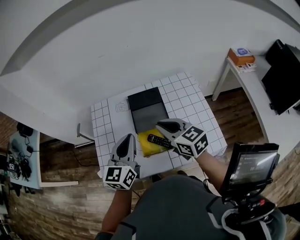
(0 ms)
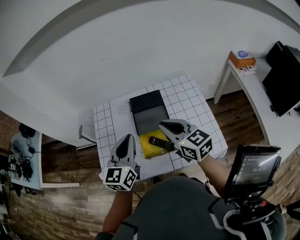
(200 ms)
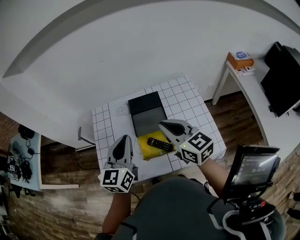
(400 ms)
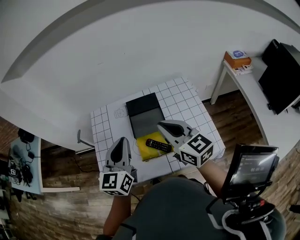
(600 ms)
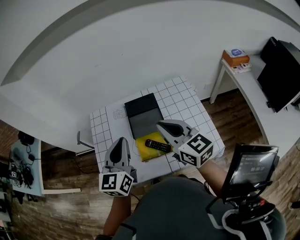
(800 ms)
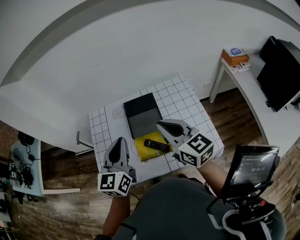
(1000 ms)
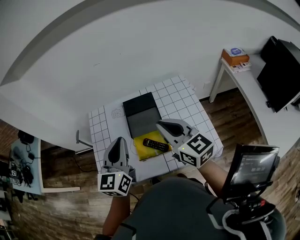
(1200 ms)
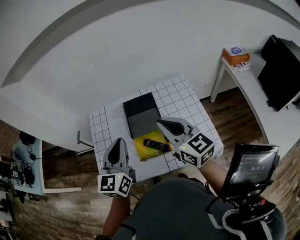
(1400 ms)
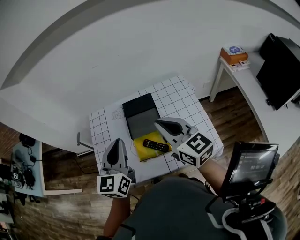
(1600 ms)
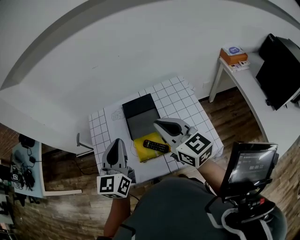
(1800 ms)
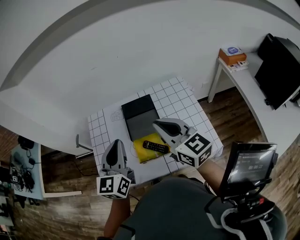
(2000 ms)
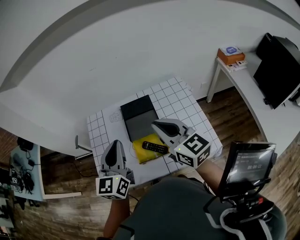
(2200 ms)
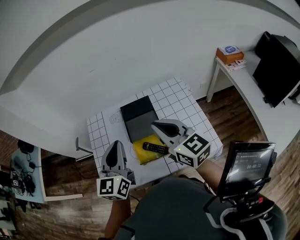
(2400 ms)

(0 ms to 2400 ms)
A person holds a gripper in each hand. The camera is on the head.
0 ms - 1200 ms: The right gripper moves upward, roughly 5 cm.
1200 ms - 2400 ms: The grippers make only small movements.

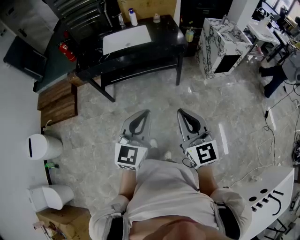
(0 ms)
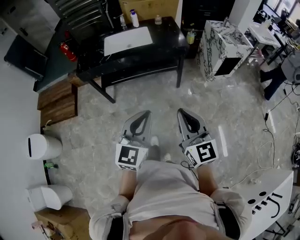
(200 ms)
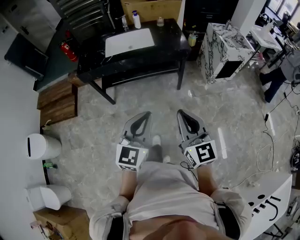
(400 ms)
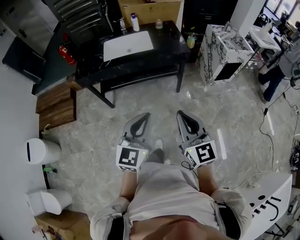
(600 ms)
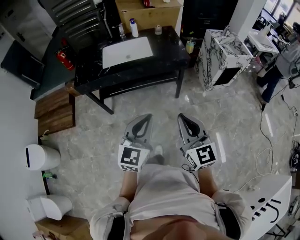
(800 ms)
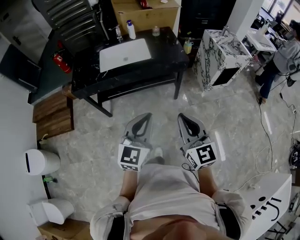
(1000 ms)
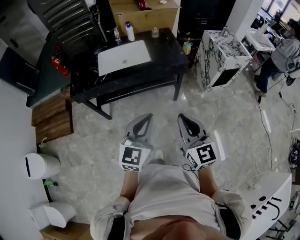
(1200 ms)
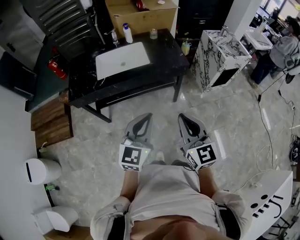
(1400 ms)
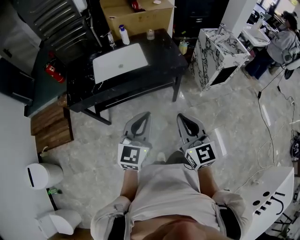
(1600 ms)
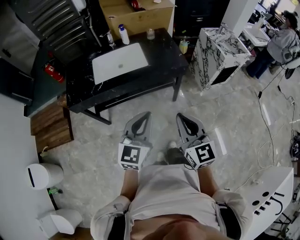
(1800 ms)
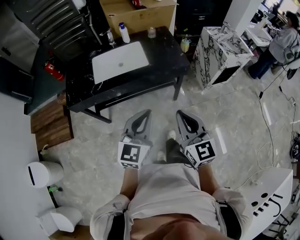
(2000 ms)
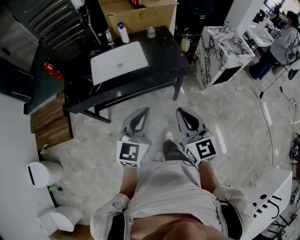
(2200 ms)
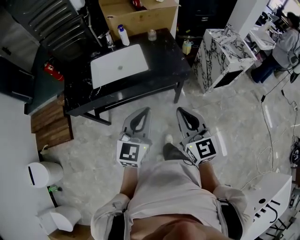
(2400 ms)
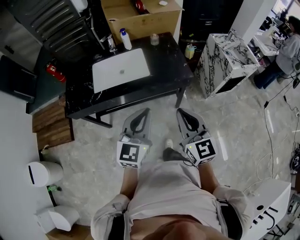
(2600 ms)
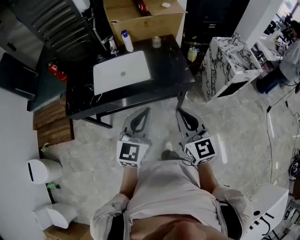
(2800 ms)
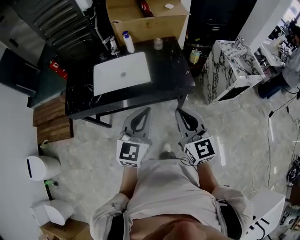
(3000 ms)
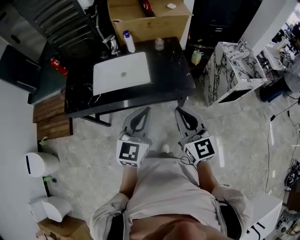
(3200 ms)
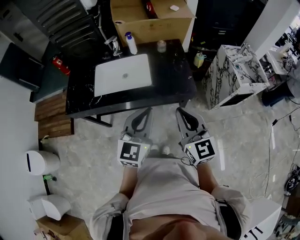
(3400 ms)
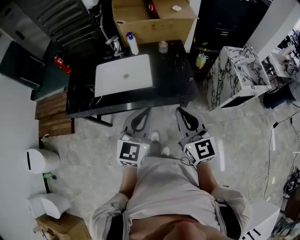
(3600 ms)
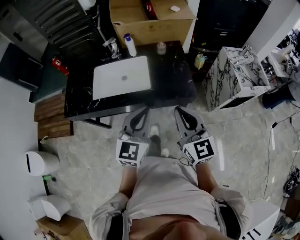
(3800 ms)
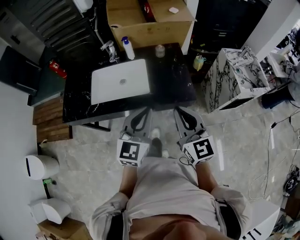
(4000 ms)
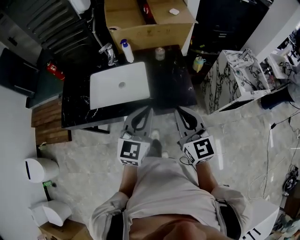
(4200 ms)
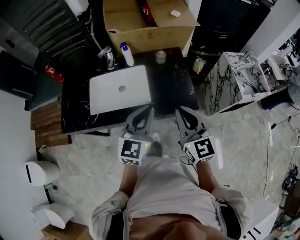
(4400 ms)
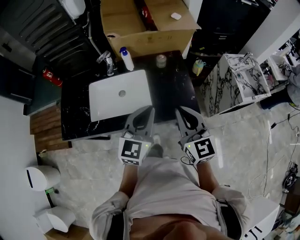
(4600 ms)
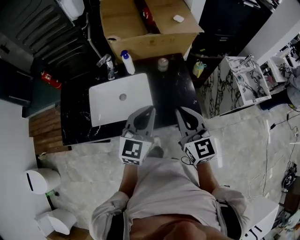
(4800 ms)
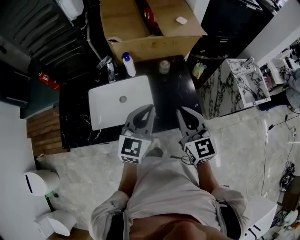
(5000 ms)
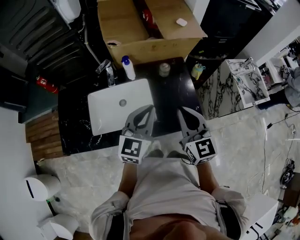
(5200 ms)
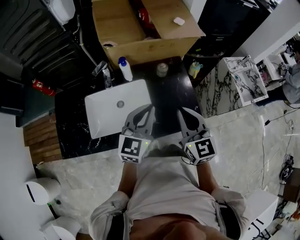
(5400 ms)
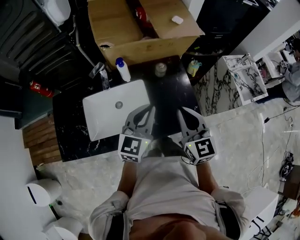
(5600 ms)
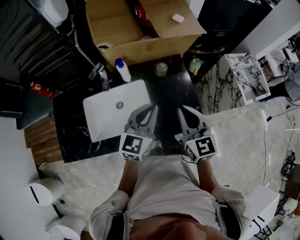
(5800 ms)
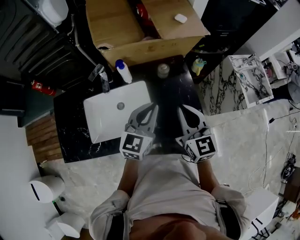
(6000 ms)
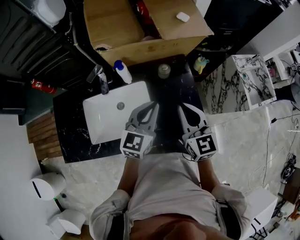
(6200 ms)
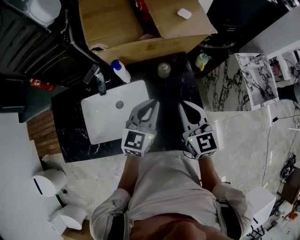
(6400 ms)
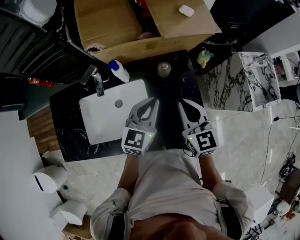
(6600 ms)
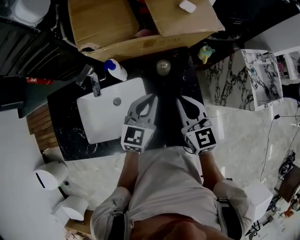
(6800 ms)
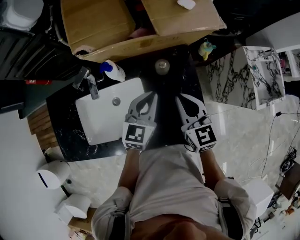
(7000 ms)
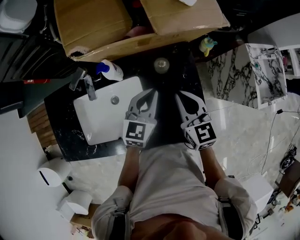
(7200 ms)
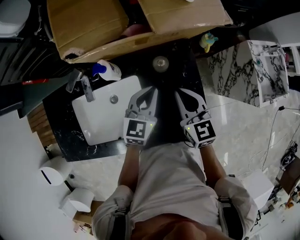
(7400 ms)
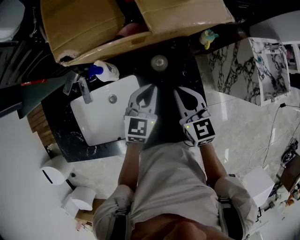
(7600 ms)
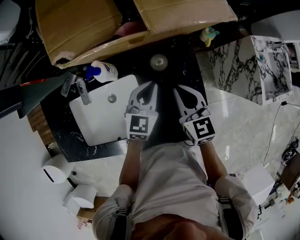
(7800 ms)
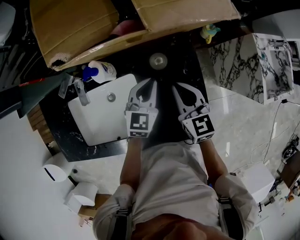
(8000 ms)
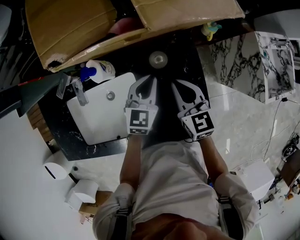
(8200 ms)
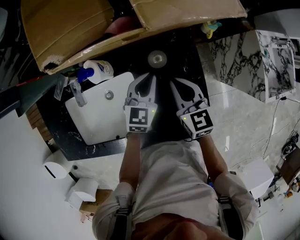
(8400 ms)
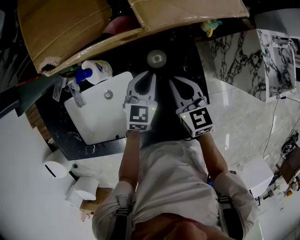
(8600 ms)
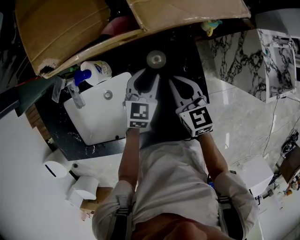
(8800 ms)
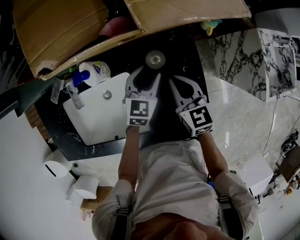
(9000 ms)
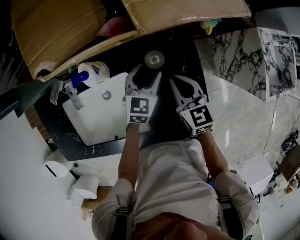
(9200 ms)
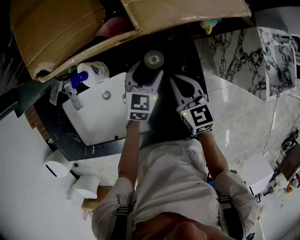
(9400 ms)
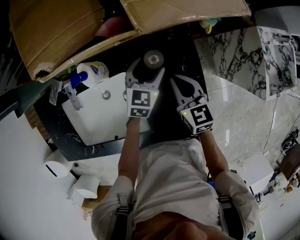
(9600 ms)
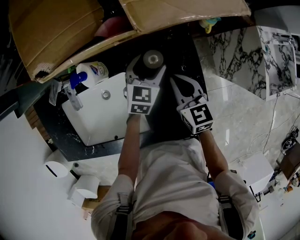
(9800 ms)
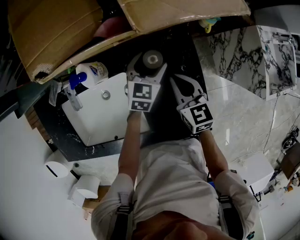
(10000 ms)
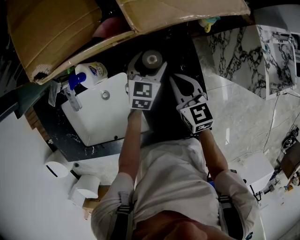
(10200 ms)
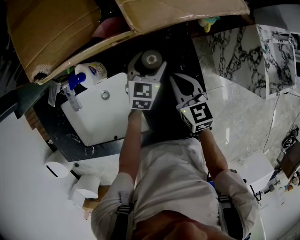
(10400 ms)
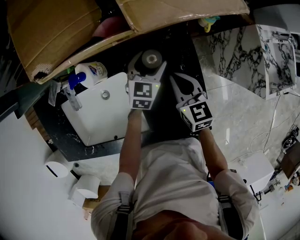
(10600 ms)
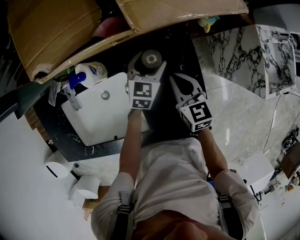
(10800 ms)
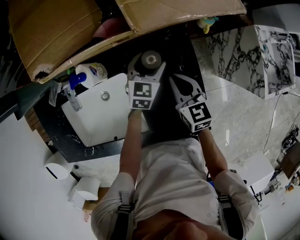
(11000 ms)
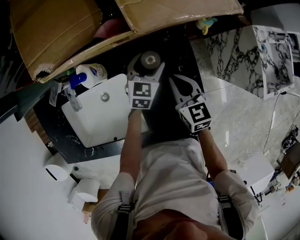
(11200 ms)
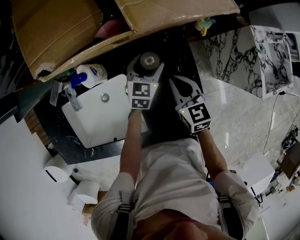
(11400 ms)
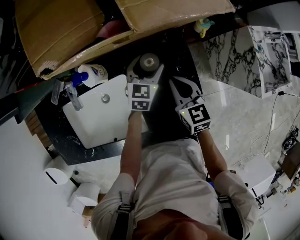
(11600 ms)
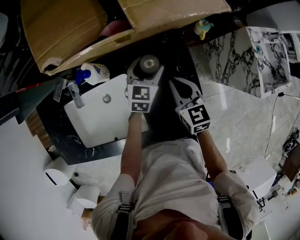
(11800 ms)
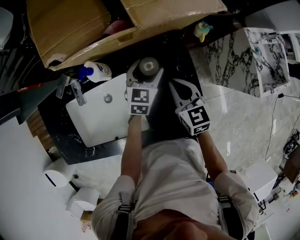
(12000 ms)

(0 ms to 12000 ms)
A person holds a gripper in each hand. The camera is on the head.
0 ms - 1600 ms: The grippers both shift forward by approximately 20 cm.
1600 ms - 3000 ms: Both grippers move forward, approximately 20 cm.
3000 ms - 4400 ms: The two grippers go approximately 15 cm forward.
4400 ms - 6000 ms: The two grippers go approximately 20 cm forward.
6000 ms - 7600 ms: The grippers both shift forward and downward by some 20 cm.
7600 ms - 9000 ms: Both grippers move downward, roughly 10 cm. The left gripper opens.
9000 ms - 10400 ms: The left gripper ends up some 5 cm from where it was, and opens up.
10400 ms - 12000 ms: The left gripper shifts by approximately 5 cm, while the right gripper changes place by about 5 cm.

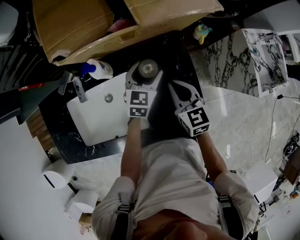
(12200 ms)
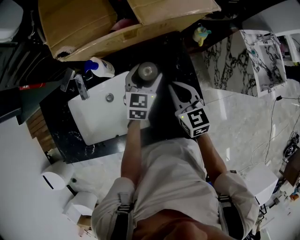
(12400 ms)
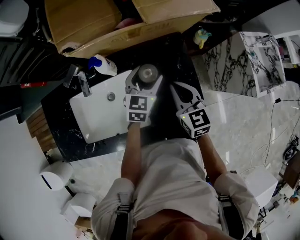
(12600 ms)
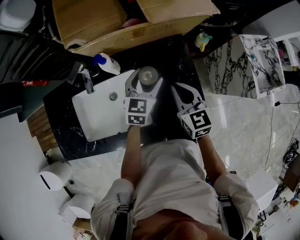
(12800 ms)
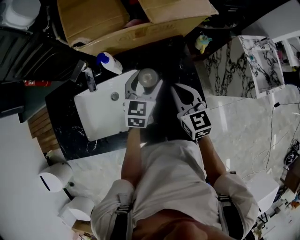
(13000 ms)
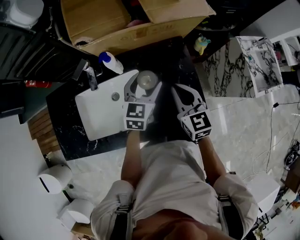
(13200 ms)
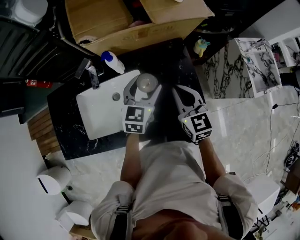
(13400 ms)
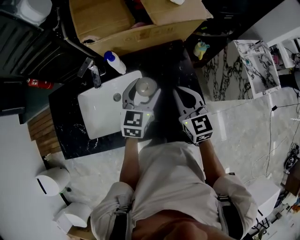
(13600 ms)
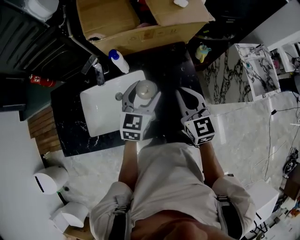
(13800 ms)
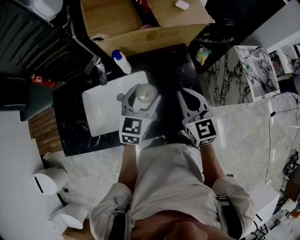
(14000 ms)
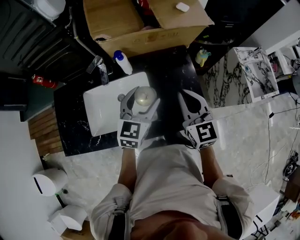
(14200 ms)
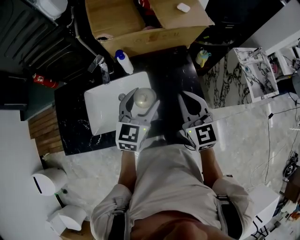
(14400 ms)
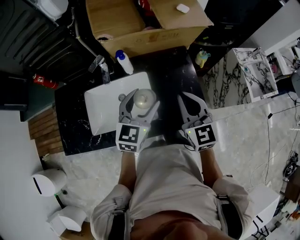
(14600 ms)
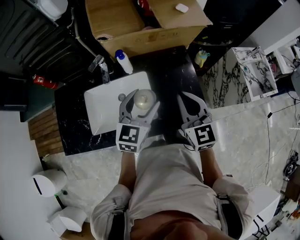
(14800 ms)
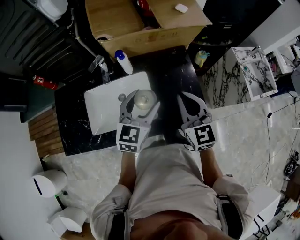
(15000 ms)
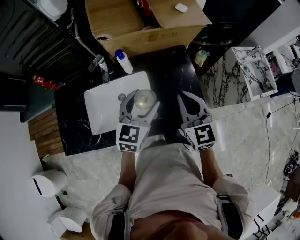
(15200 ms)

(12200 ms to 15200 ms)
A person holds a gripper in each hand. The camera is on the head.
12200 ms - 13800 ms: The right gripper travels upward and backward by approximately 15 cm, while the left gripper is displaced backward, upward and to the left by some 20 cm.
13800 ms - 15200 ms: The left gripper is displaced backward by some 5 cm. Meanwhile the right gripper changes place by about 5 cm.

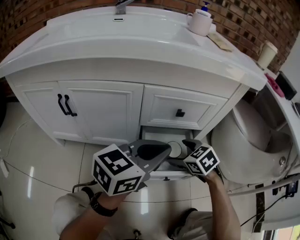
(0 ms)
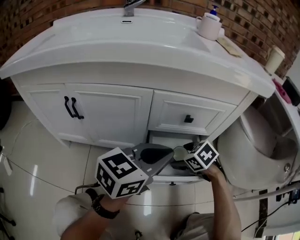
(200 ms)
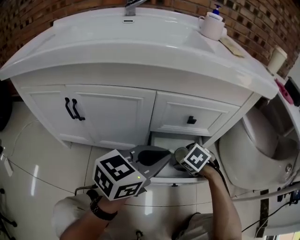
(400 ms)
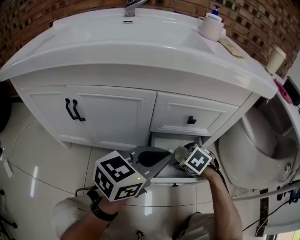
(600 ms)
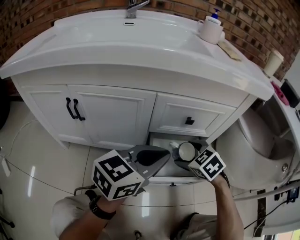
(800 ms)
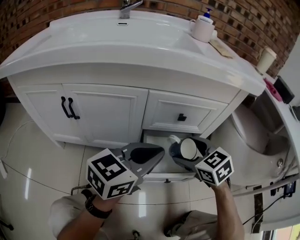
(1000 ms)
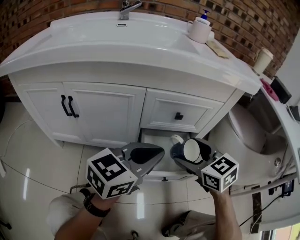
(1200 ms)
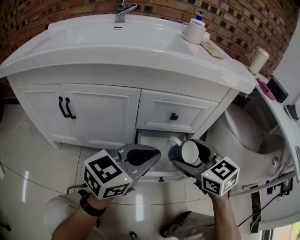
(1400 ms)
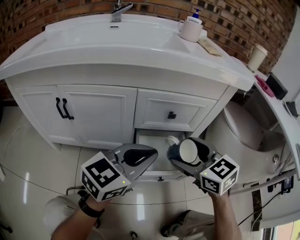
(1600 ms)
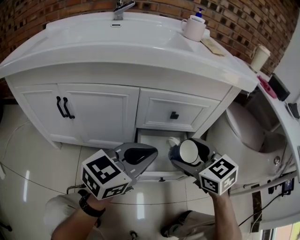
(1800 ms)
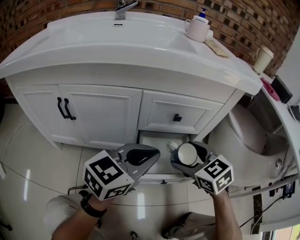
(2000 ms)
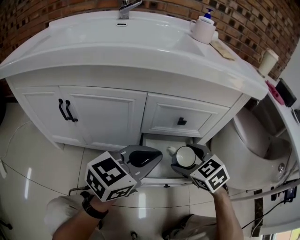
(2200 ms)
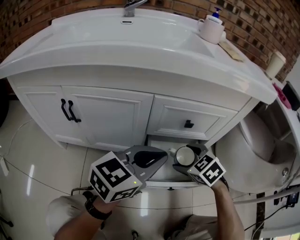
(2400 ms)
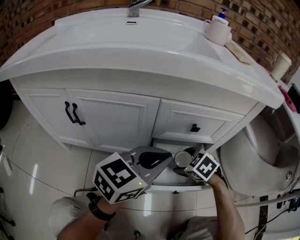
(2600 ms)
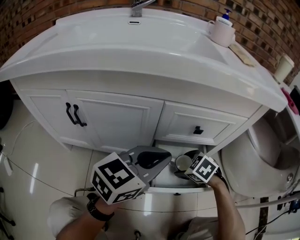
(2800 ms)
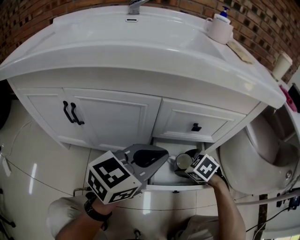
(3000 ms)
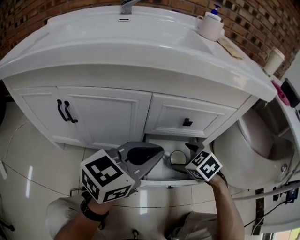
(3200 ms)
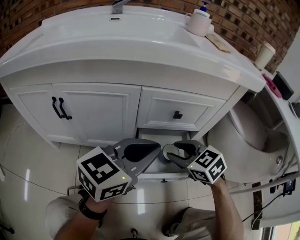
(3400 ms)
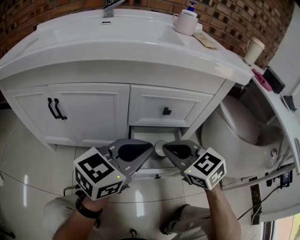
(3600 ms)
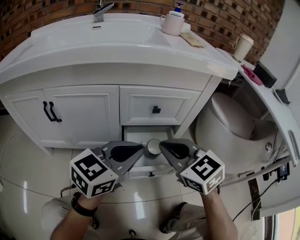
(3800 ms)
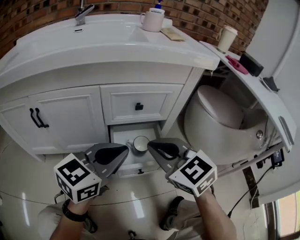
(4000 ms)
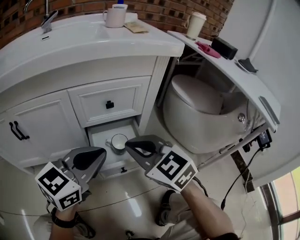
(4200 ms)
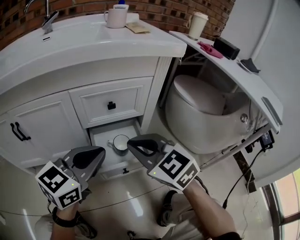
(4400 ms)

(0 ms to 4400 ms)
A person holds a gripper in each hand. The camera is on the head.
0 ms - 1400 ms: The right gripper is displaced upward by approximately 15 cm, and turns by about 30 degrees.
1400 ms - 3000 ms: The right gripper heads downward, covering roughly 20 cm, and angles its fingers downward, by about 40 degrees; the left gripper heads forward, covering some 5 cm.
3000 ms - 4400 ms: The right gripper travels upward and backward by about 20 cm, points its fingers some 40 degrees further upward, and closes up, while the left gripper shifts approximately 10 cm backward and to the right.

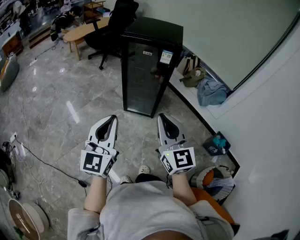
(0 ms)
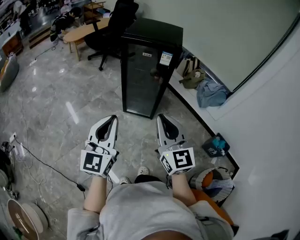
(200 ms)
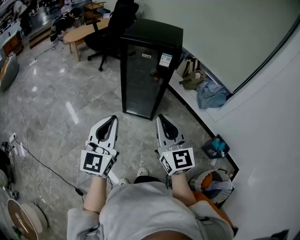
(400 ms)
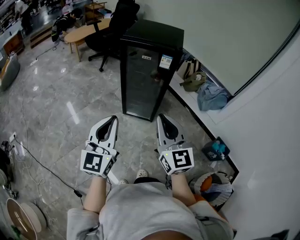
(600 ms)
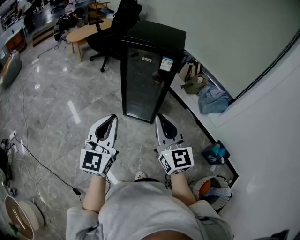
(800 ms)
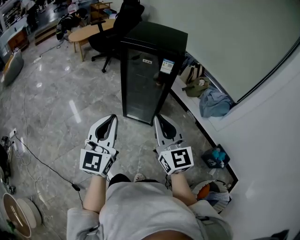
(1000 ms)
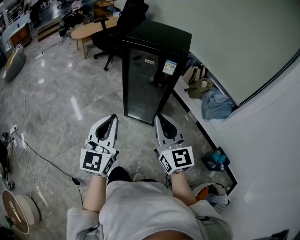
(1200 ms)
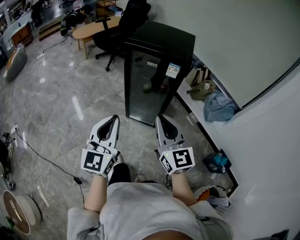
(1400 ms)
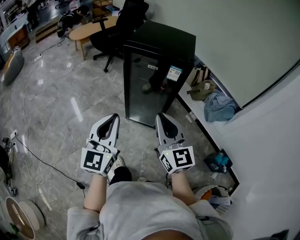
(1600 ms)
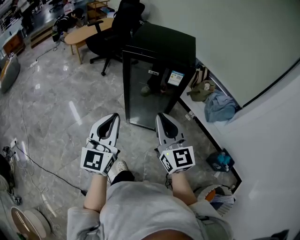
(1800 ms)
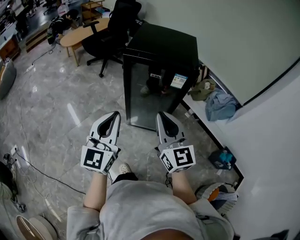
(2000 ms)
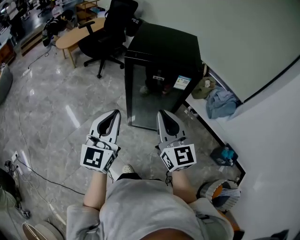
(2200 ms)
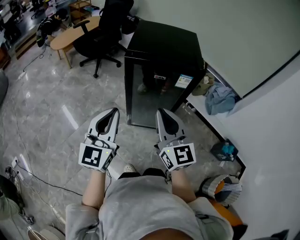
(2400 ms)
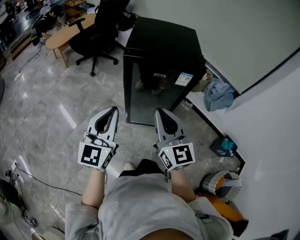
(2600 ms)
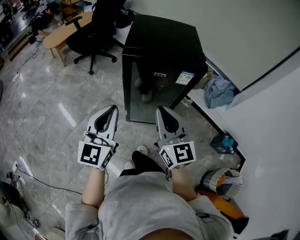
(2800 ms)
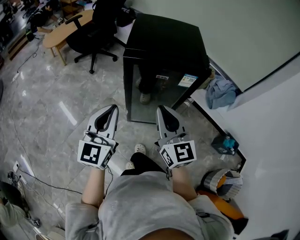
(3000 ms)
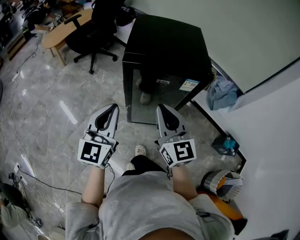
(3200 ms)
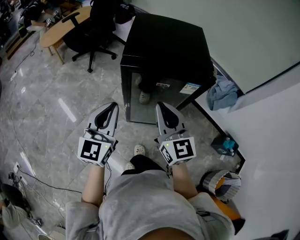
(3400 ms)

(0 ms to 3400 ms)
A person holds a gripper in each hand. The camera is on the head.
0 ms - 1600 ms: The two grippers go about 15 cm forward.
1600 ms - 3400 ms: Both grippers travel together forward, roughly 25 cm.
